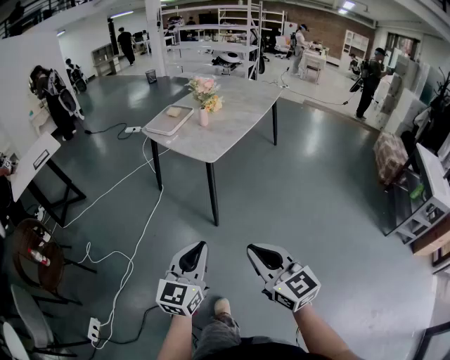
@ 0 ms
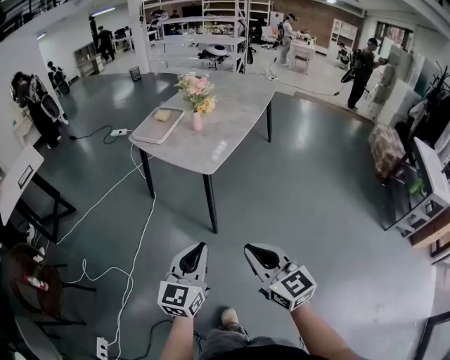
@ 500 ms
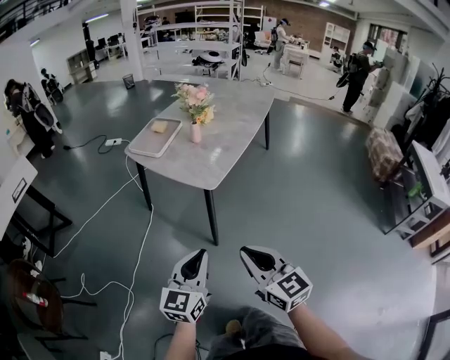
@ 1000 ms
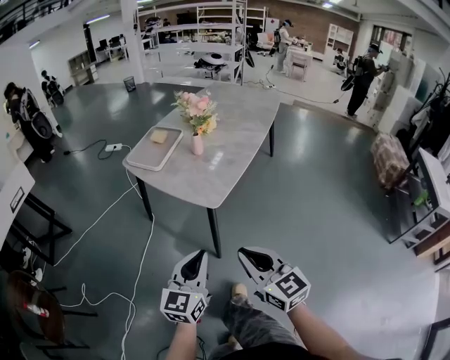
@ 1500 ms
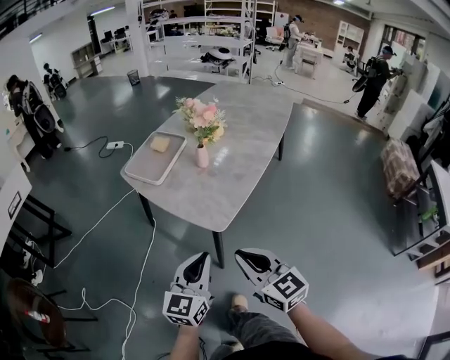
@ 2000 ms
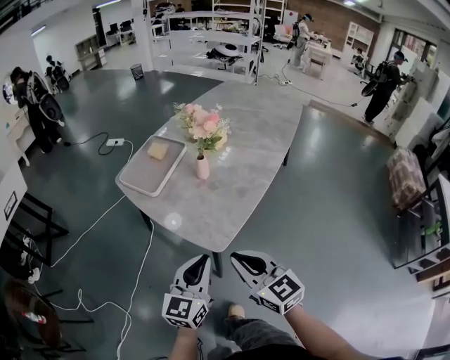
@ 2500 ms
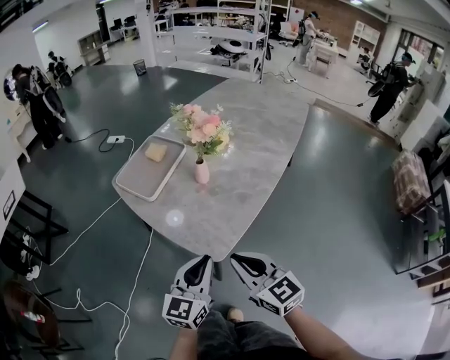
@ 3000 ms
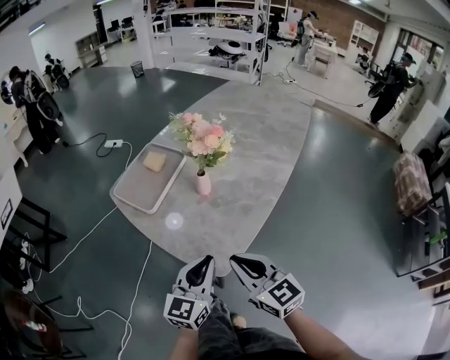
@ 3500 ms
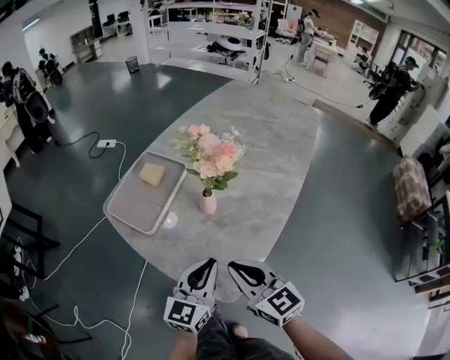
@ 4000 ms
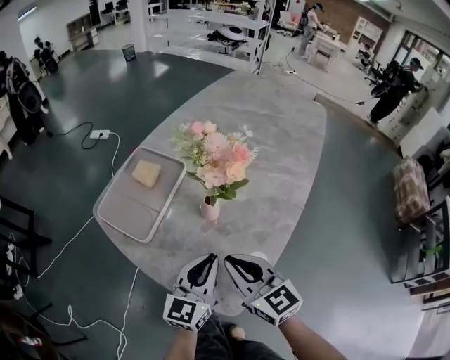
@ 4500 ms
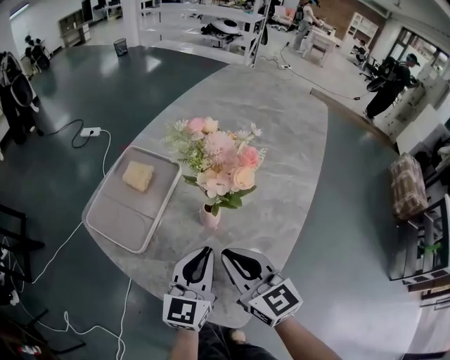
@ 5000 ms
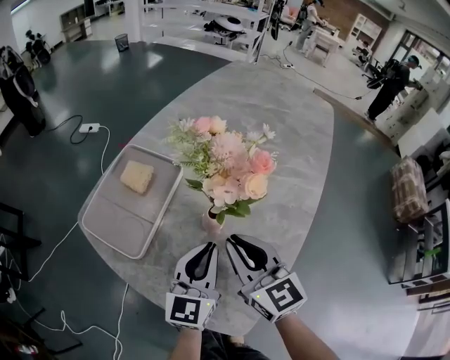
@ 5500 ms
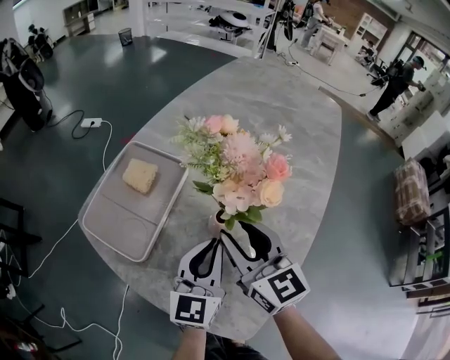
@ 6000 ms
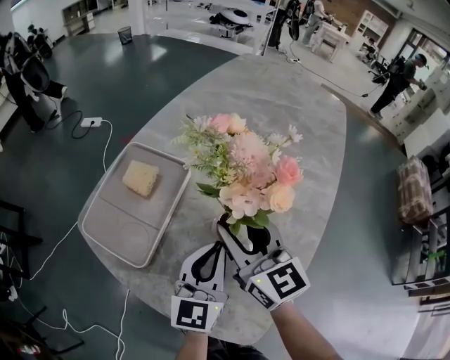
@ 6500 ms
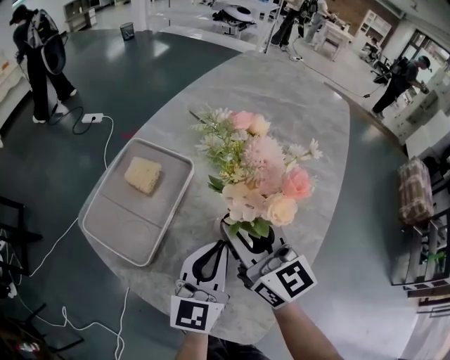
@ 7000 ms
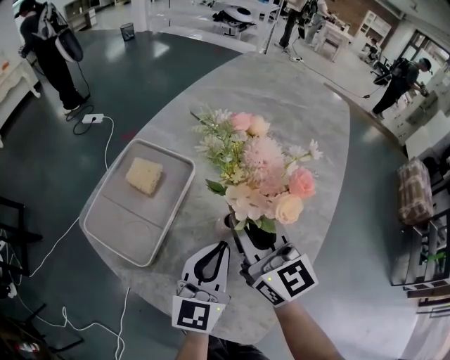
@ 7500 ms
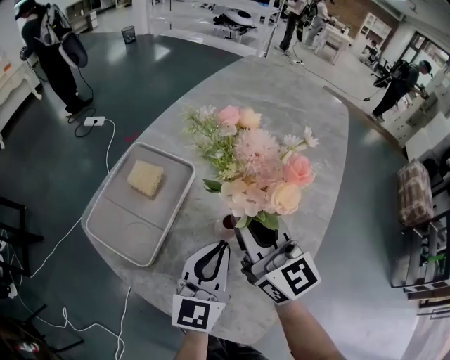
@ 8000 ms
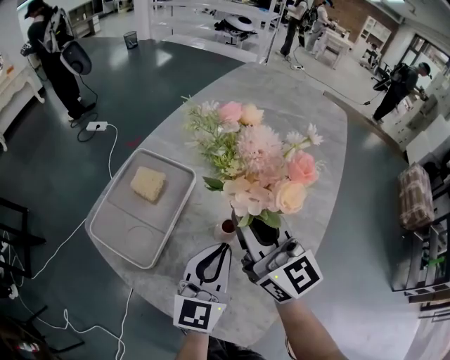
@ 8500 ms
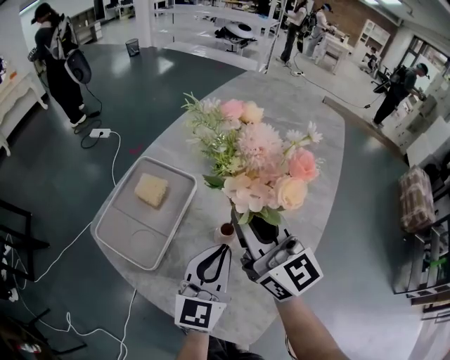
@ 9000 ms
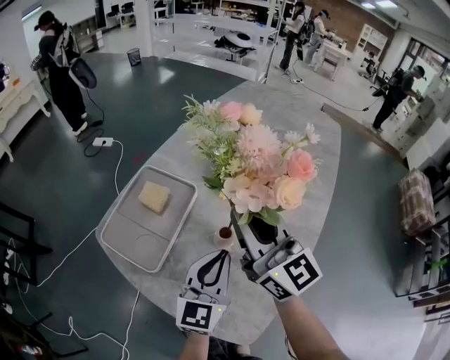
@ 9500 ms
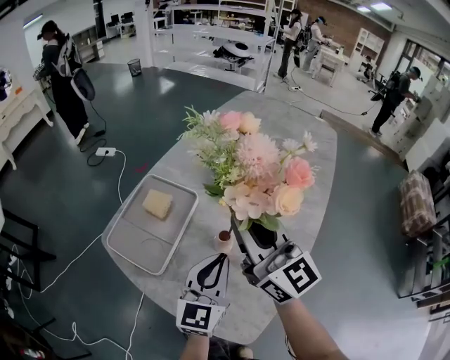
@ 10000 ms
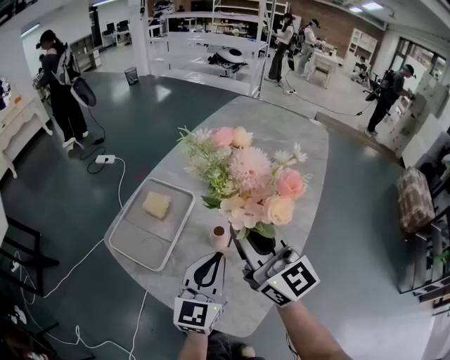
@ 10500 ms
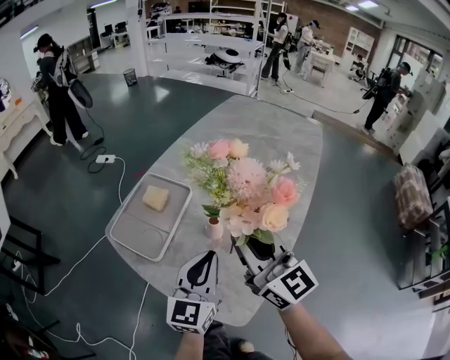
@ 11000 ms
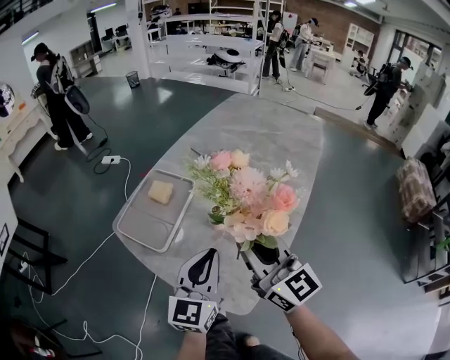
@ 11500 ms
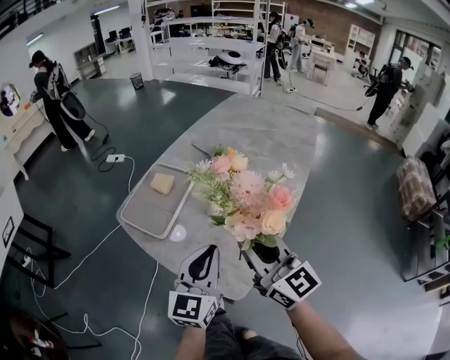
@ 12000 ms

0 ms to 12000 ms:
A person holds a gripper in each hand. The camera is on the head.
0 ms to 2000 ms: The two grippers go approximately 40 cm forward.
2000 ms to 4000 ms: Both grippers travel together forward, some 25 cm.
4000 ms to 6000 ms: The two grippers go roughly 20 cm forward. The right gripper opens.
6000 ms to 8000 ms: The right gripper closes its fingers.
8000 ms to 10000 ms: The left gripper moves upward, some 5 cm. The right gripper heads upward, covering roughly 10 cm.
10000 ms to 12000 ms: The left gripper travels backward and upward by roughly 15 cm; the right gripper travels backward by roughly 20 cm.

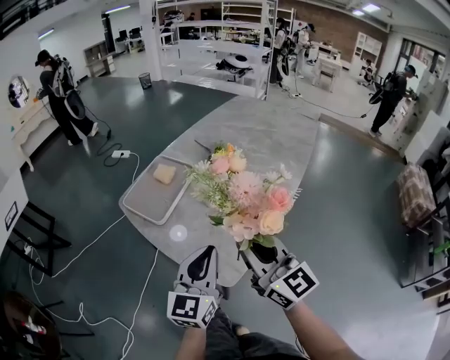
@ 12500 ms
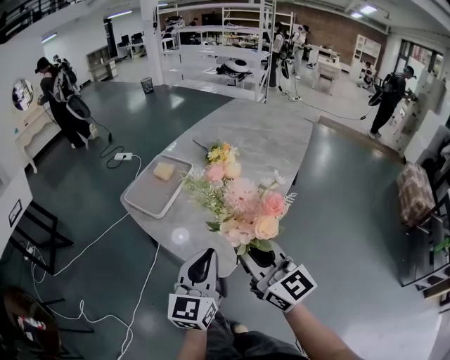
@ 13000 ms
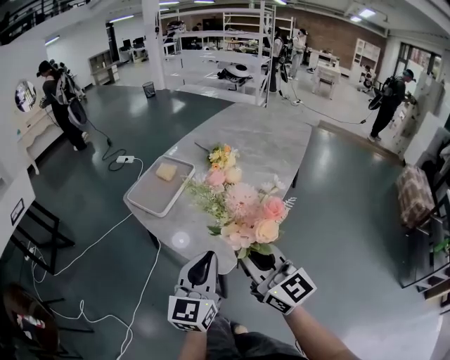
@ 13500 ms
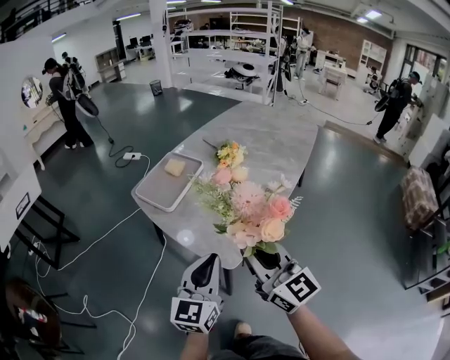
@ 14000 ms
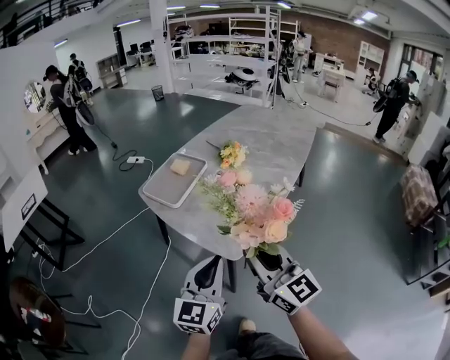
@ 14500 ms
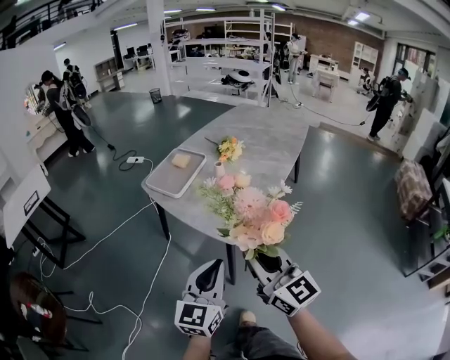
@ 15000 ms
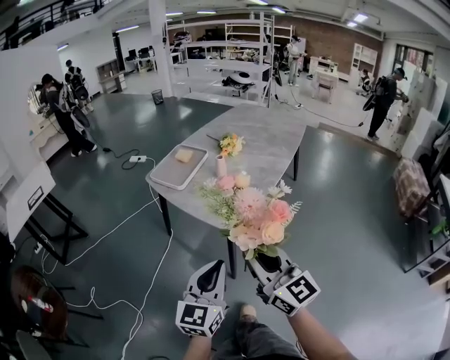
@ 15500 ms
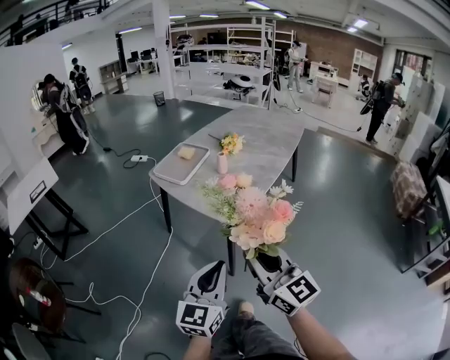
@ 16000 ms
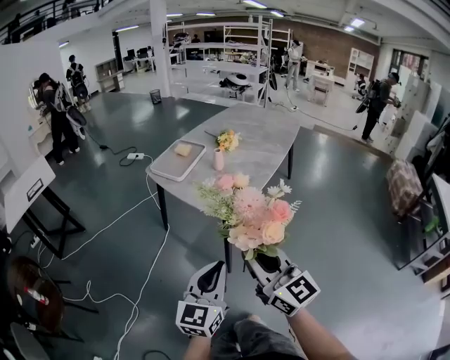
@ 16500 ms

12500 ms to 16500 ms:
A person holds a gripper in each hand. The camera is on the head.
12500 ms to 14500 ms: Both grippers travel together backward, roughly 15 cm.
14500 ms to 16500 ms: The two grippers go about 20 cm backward.

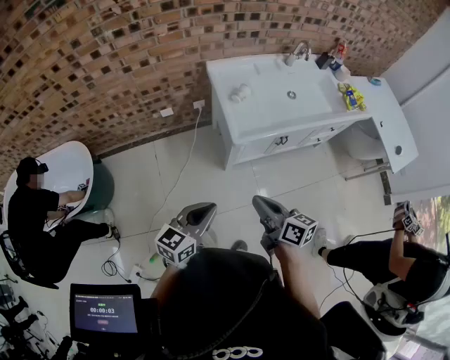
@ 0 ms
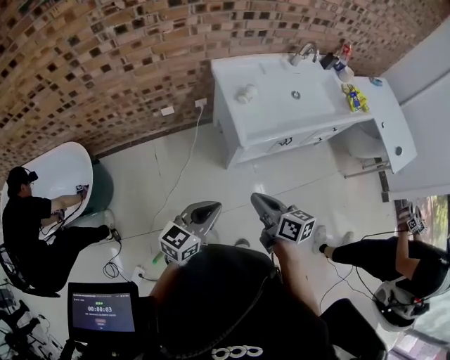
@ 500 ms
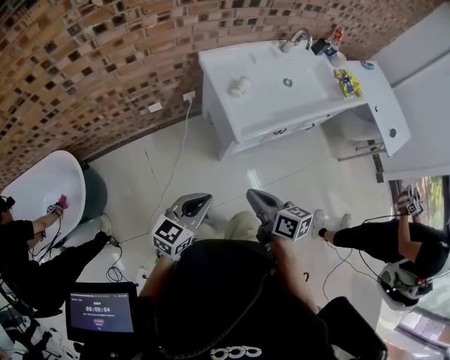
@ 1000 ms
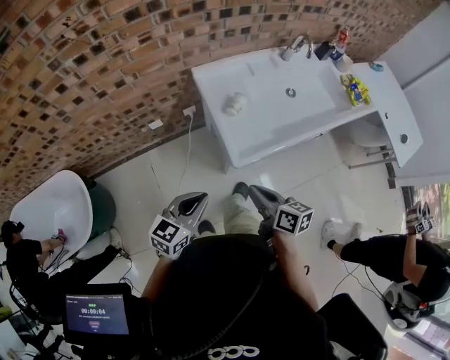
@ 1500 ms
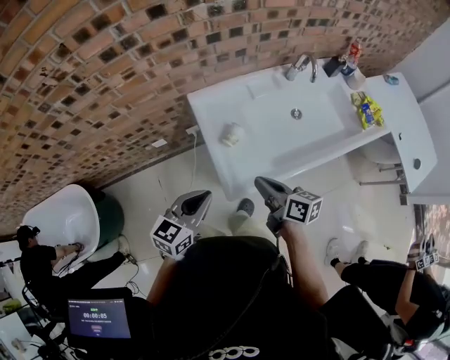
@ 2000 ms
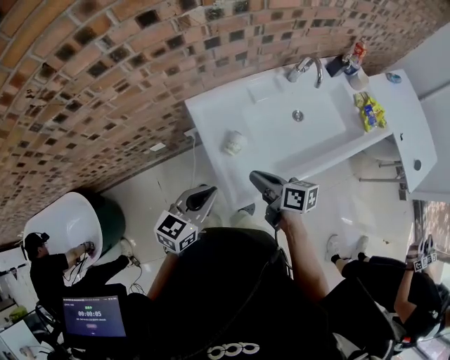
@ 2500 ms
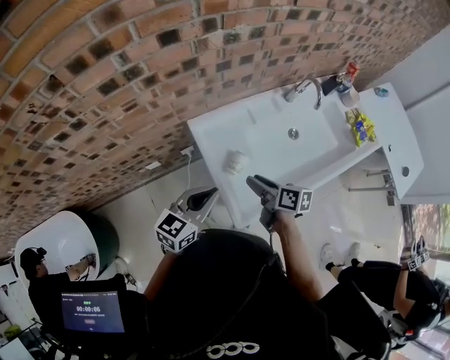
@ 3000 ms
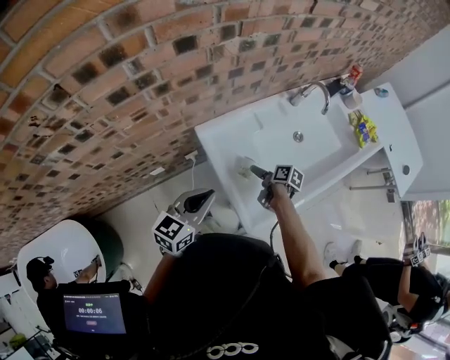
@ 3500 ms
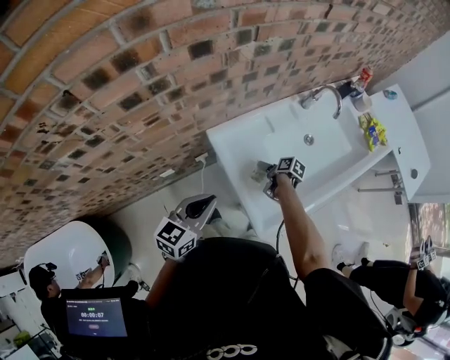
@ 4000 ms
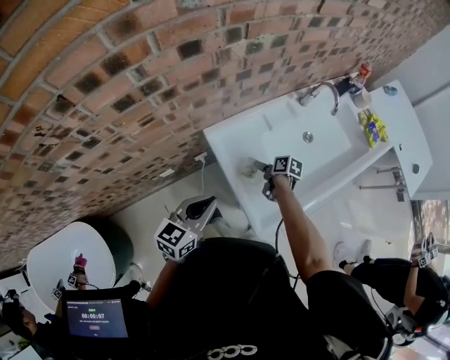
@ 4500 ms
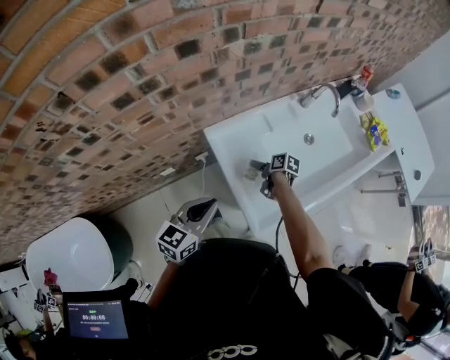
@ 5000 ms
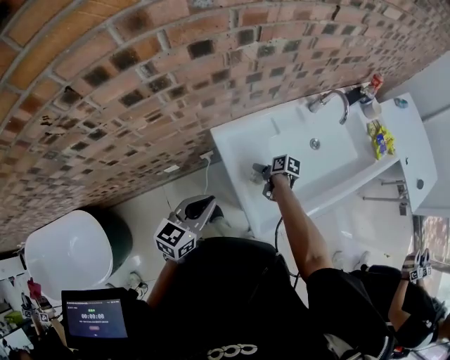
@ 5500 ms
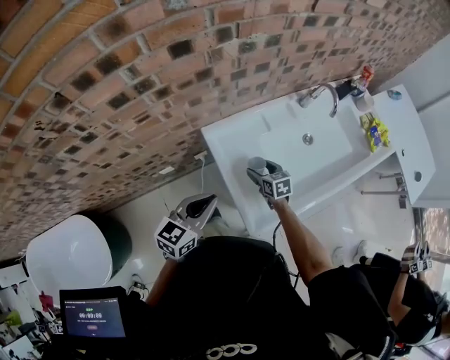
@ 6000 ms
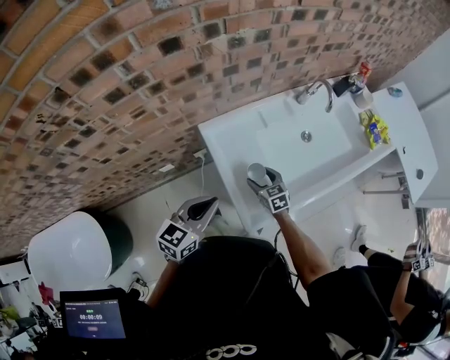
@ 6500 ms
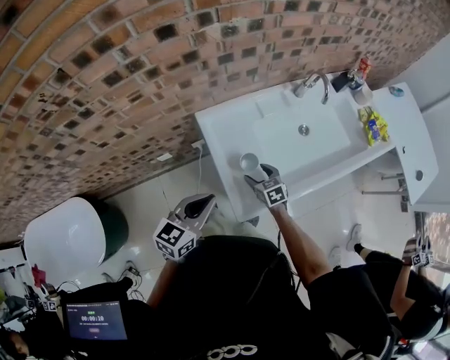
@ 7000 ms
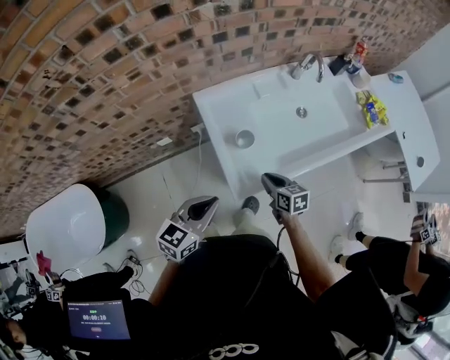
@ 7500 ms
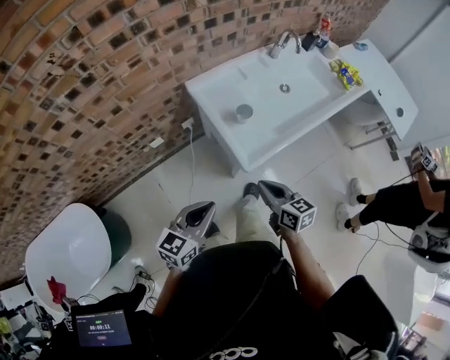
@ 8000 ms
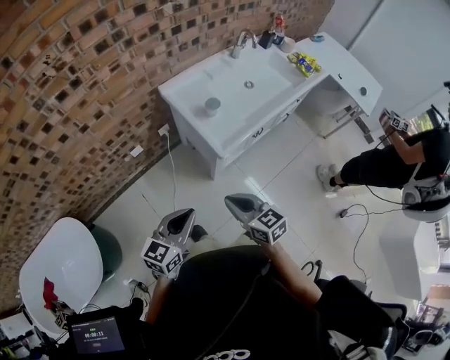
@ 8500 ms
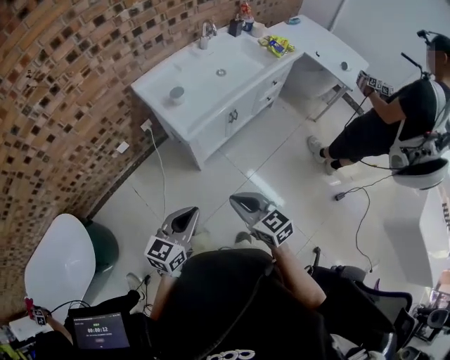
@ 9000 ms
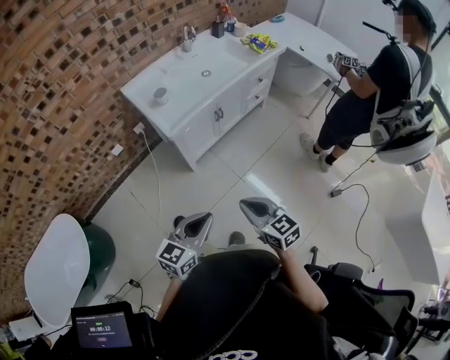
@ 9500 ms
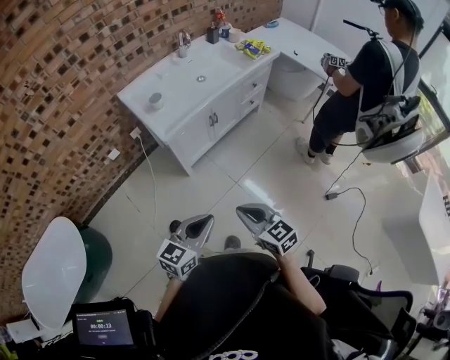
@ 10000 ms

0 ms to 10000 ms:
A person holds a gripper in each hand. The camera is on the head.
0 ms to 2000 ms: The two grippers go about 35 cm forward.
2000 ms to 4000 ms: The right gripper shifts some 30 cm downward and forward, angles its fingers downward, by roughly 40 degrees, and opens; the left gripper heads forward and to the left, covering some 20 cm.
4000 ms to 6000 ms: The right gripper ends up about 5 cm from where it was, and rolls counterclockwise, seen from behind, by about 60 degrees.
6000 ms to 8000 ms: The right gripper goes about 40 cm backward and upward, changes its angle by some 20 degrees, and closes. Meanwhile the left gripper shifts roughly 25 cm backward.
8000 ms to 10000 ms: The pair of grippers is taken backward and to the right, approximately 40 cm.

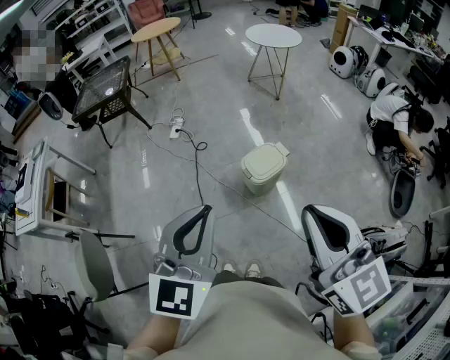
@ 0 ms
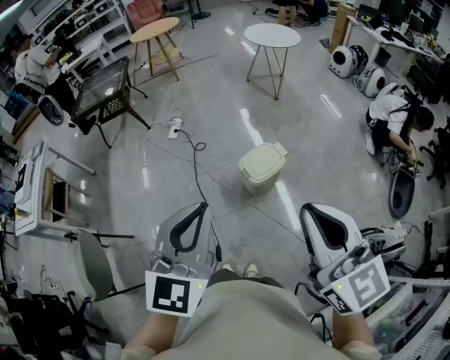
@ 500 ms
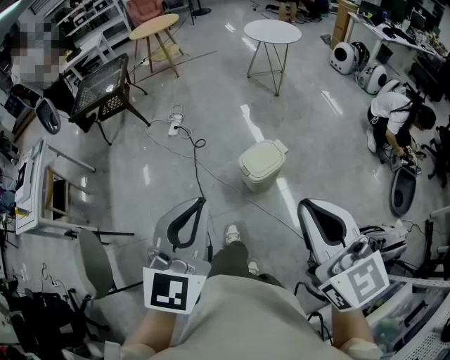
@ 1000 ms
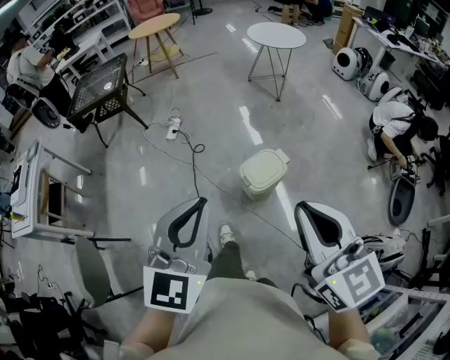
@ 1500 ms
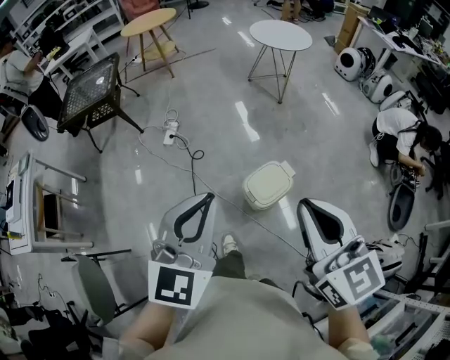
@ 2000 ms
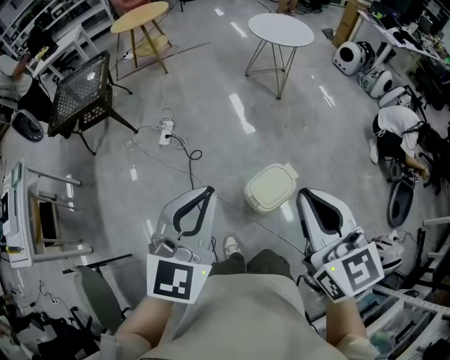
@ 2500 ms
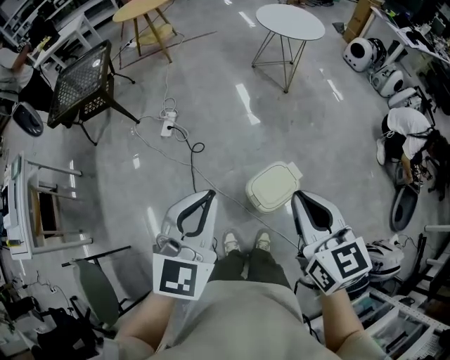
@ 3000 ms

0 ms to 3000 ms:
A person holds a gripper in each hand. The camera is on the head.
0 ms to 1500 ms: The two grippers go roughly 10 cm forward.
1500 ms to 3000 ms: Both grippers travel together forward, some 25 cm.
